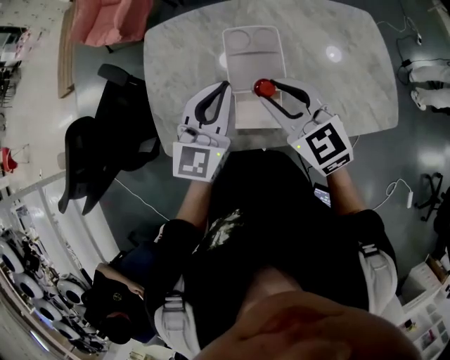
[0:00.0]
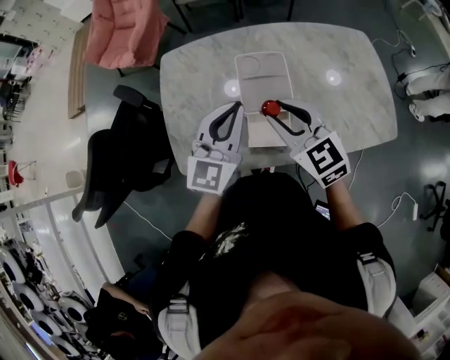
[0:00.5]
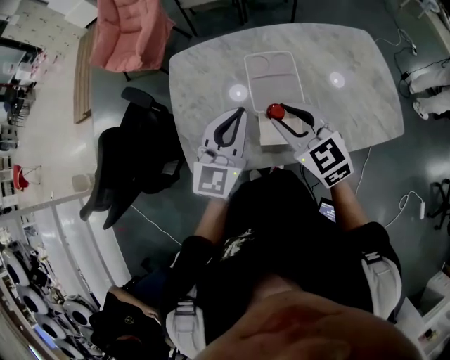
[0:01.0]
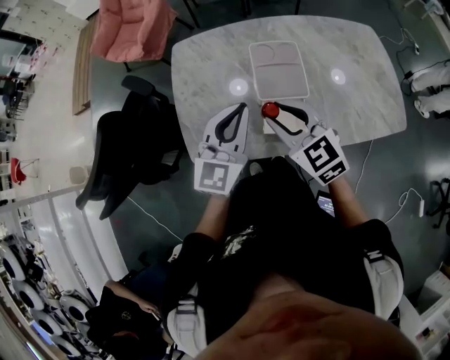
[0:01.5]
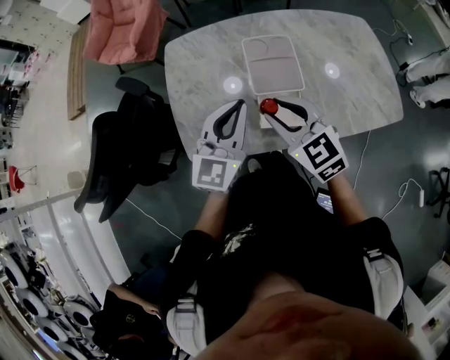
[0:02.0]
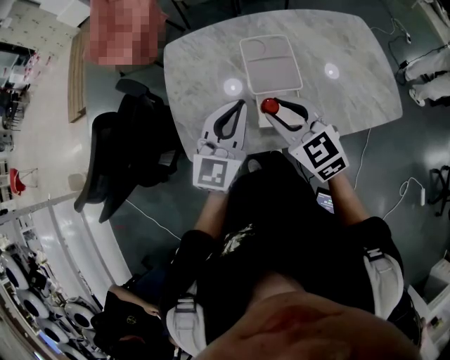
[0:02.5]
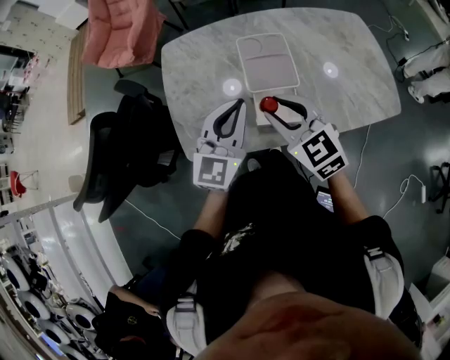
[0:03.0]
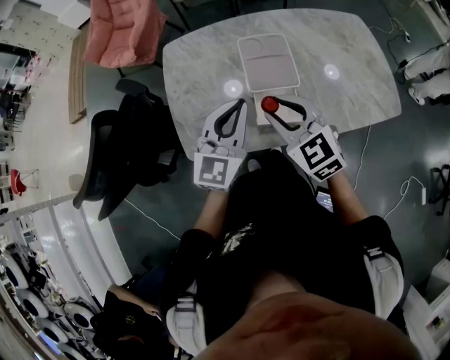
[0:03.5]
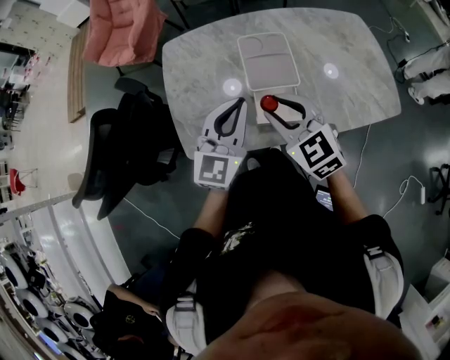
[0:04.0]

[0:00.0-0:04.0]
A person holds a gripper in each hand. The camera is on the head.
0.0 to 2.0 s: Both grippers travel together to the left and backward, some 10 cm.
2.0 to 4.0 s: The grippers move only a little.

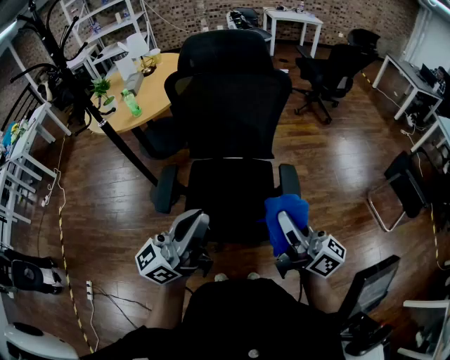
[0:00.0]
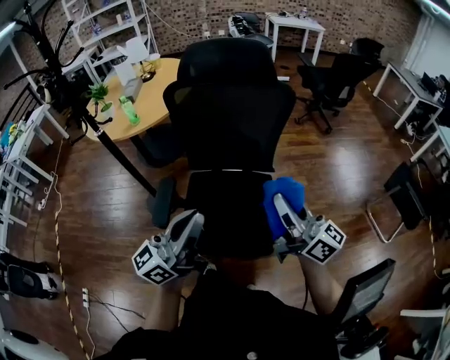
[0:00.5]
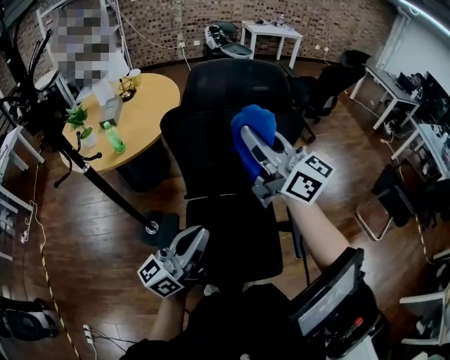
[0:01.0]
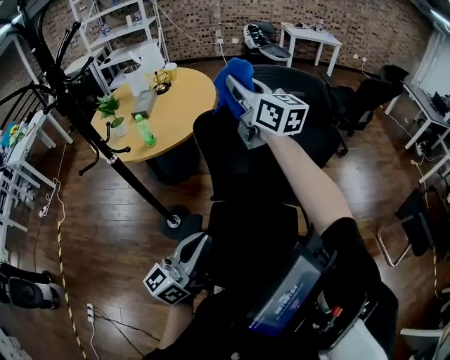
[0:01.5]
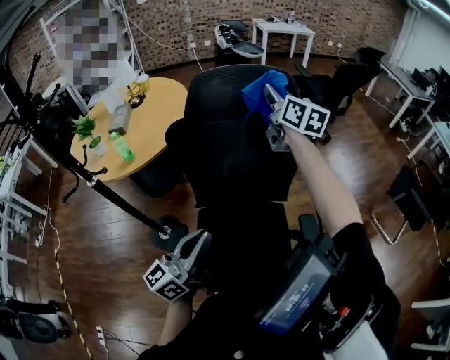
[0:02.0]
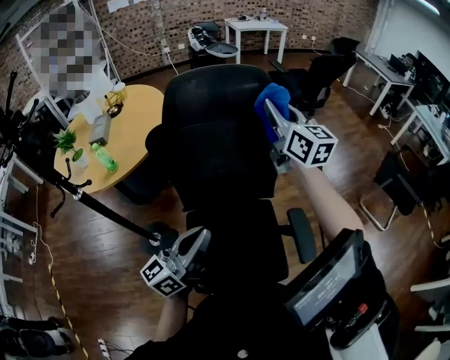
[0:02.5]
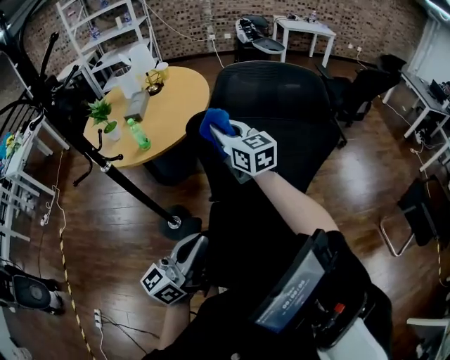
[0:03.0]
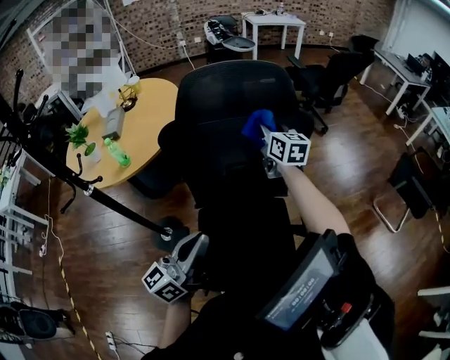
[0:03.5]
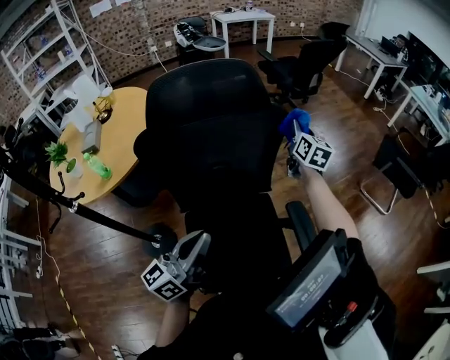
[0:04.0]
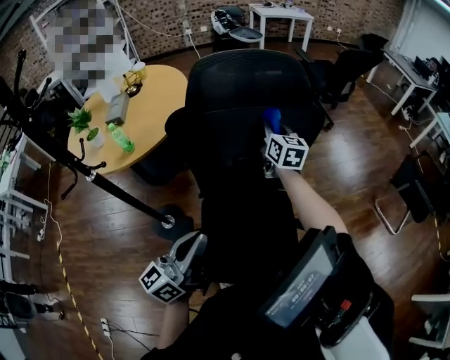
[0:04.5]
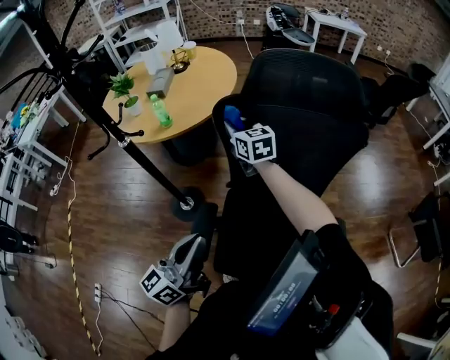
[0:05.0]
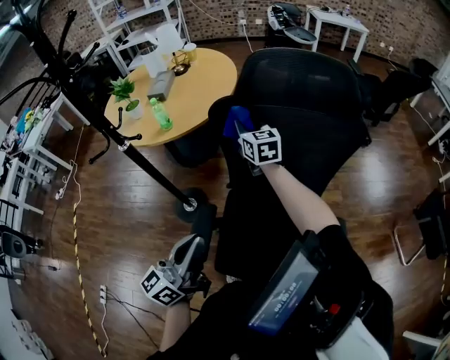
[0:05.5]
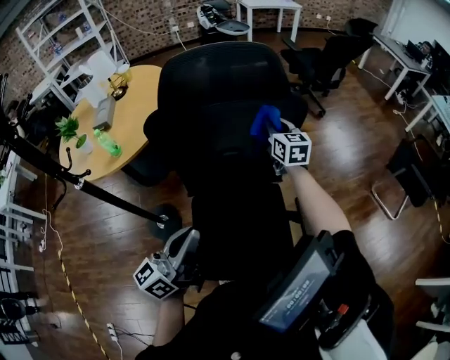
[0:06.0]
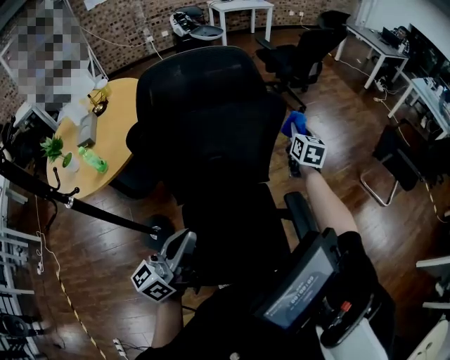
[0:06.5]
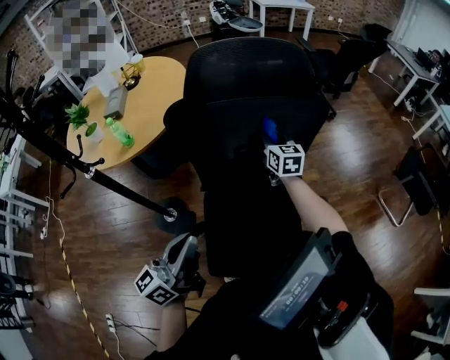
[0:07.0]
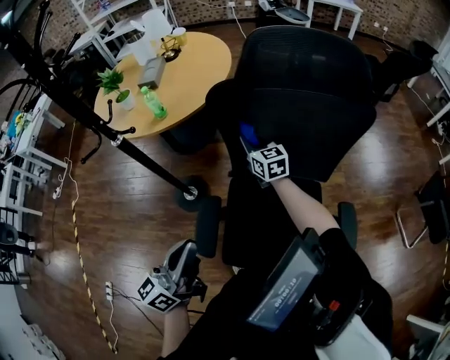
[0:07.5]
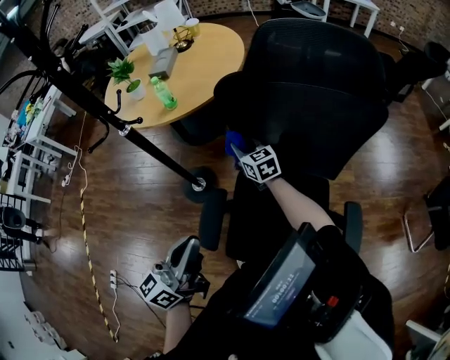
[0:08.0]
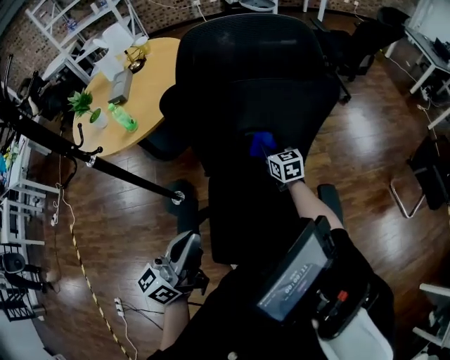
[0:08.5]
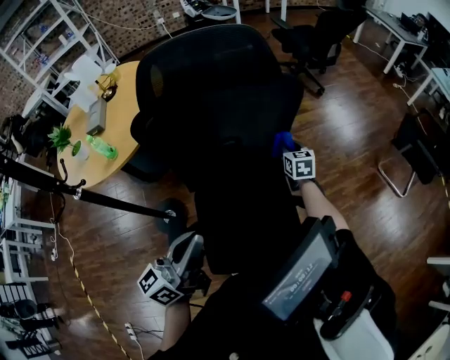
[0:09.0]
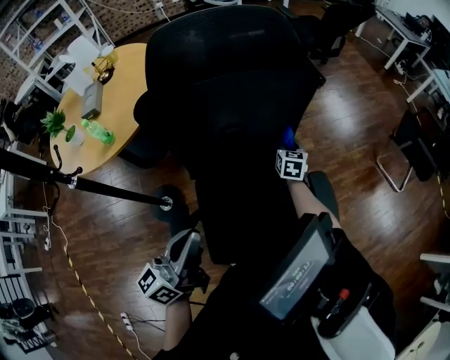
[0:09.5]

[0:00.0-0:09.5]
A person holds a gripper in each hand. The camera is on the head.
0.0 to 2.0 s: The right gripper shifts roughly 60 cm forward, and rotates approximately 40 degrees. The left gripper goes approximately 25 cm forward and to the left.
2.0 to 4.0 s: The right gripper changes place by approximately 30 cm, and changes its angle by about 30 degrees.
4.0 to 5.5 s: The left gripper moves approximately 15 cm, and turns by about 30 degrees; the right gripper changes place by roughly 50 cm, and changes its angle by some 50 degrees.
5.5 to 7.5 s: The right gripper goes some 10 cm downward.
7.5 to 9.5 s: The left gripper changes place by roughly 10 cm, while the right gripper shifts by about 35 cm, and swivels about 50 degrees.

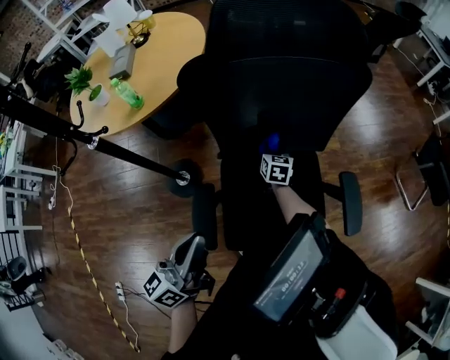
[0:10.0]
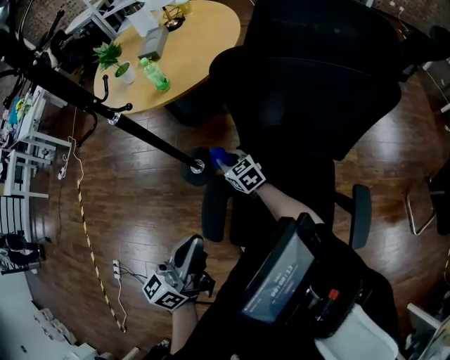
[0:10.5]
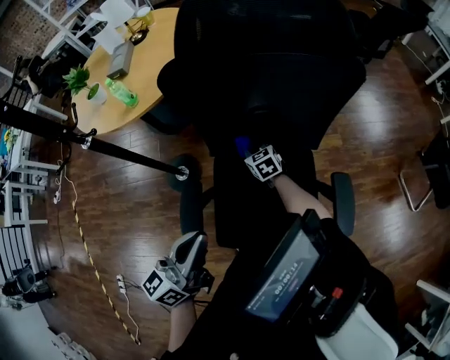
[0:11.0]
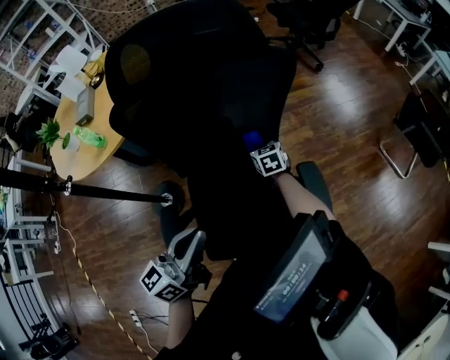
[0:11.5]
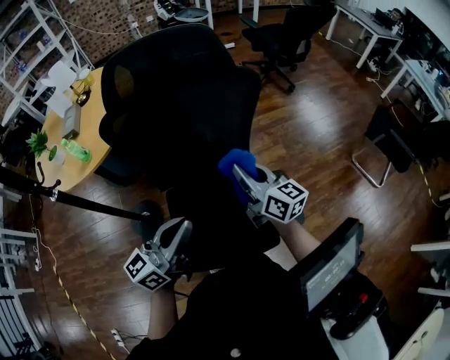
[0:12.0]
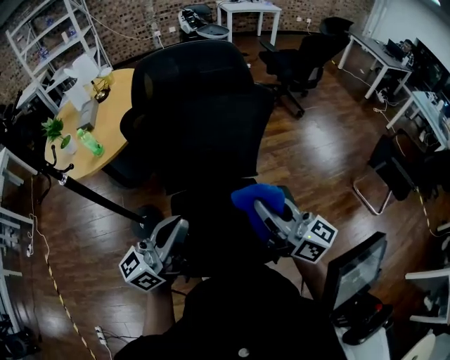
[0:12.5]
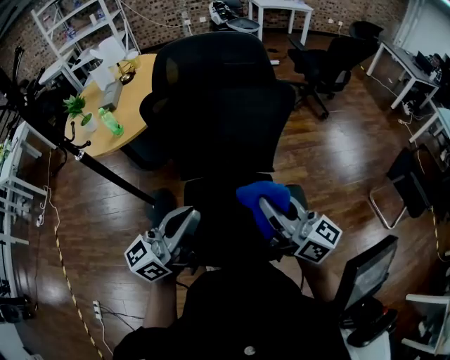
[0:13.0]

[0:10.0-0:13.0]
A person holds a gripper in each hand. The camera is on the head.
10.0 to 11.5 s: The left gripper ends up roughly 15 cm from where it was.
11.5 to 13.0 s: The left gripper heads upward, covering about 10 cm; the right gripper moves upward and backward, roughly 40 cm, and tilts its fingers some 50 degrees upward.

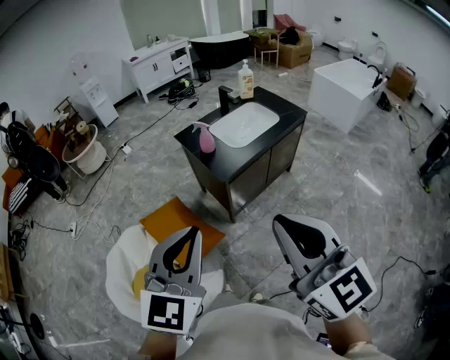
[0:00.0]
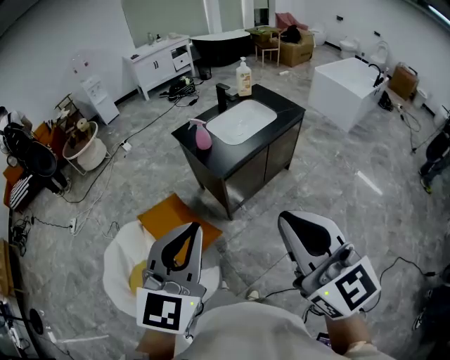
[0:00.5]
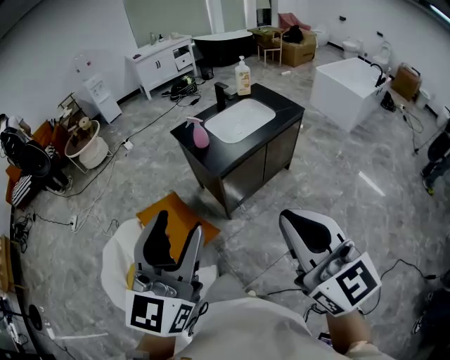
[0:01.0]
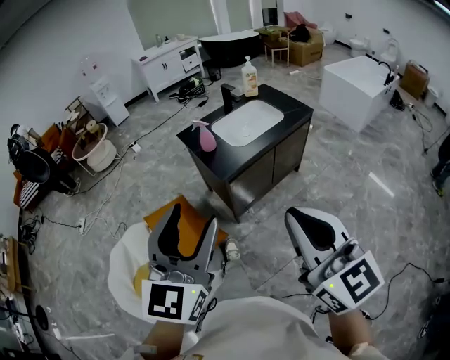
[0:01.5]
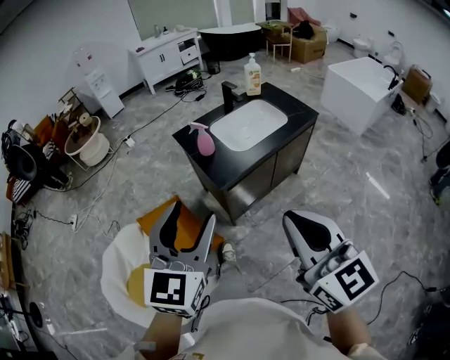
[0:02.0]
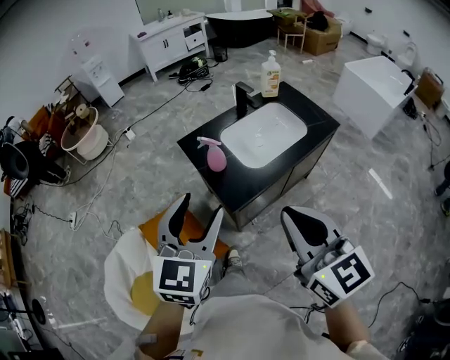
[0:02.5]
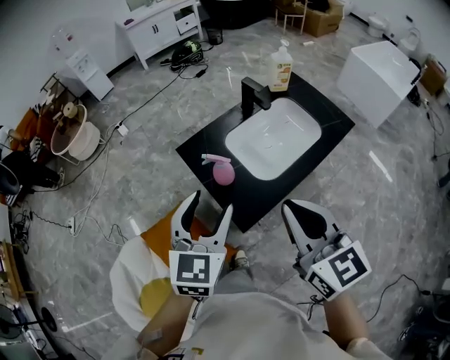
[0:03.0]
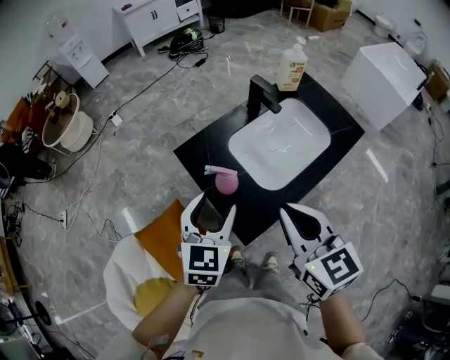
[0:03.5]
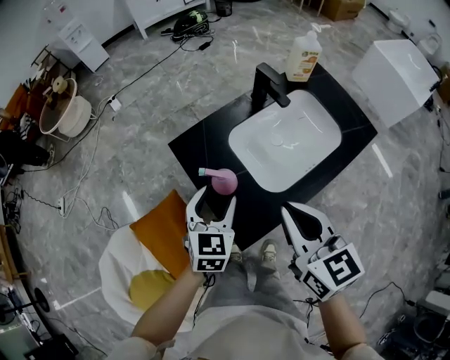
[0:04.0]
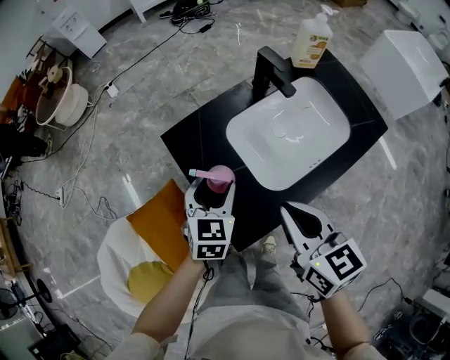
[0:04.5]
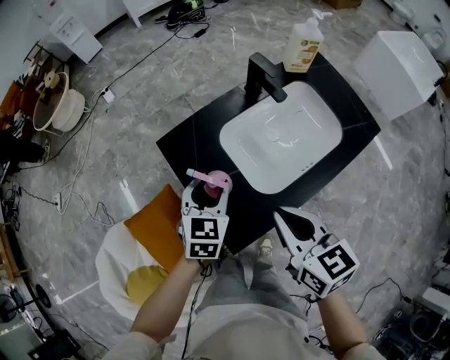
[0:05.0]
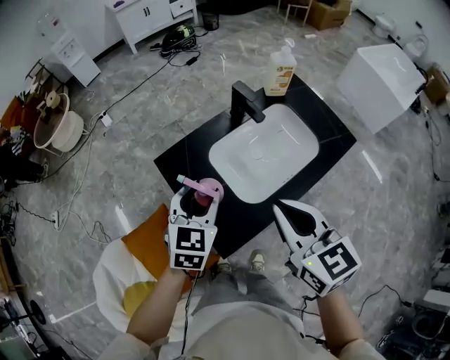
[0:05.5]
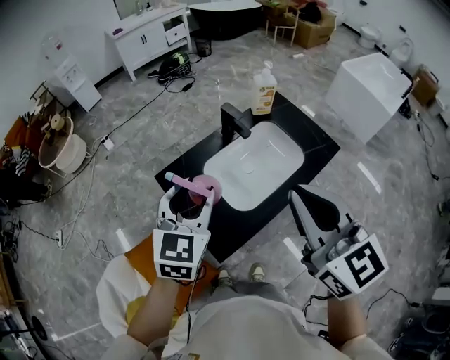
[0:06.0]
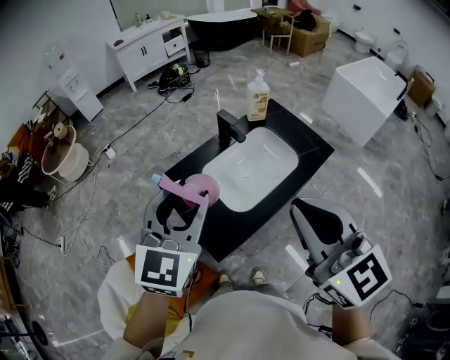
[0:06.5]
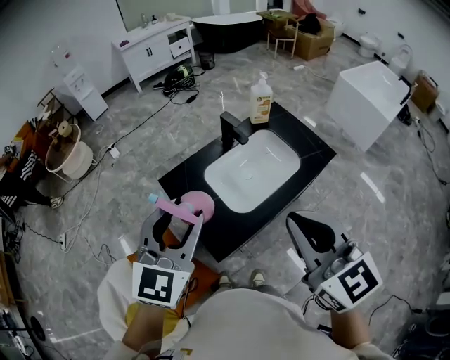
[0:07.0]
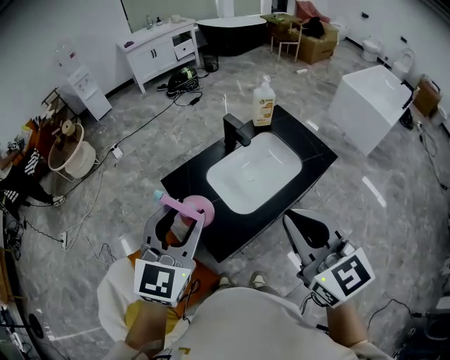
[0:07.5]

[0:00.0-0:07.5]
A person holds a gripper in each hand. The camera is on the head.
0.0 to 2.0 s: The right gripper shifts approximately 15 cm forward, to the right and downward. Meanwhile the left gripper shifts roughly 15 cm forward and to the right, and opens up.
2.0 to 4.0 s: The two grippers travel together, forward, approximately 50 cm. The left gripper heads downward, covering approximately 30 cm, and changes its angle by some 30 degrees. Meanwhile the right gripper swivels roughly 20 degrees.
4.0 to 5.5 s: The left gripper travels upward by roughly 10 cm, while the right gripper moves about 5 cm.
5.5 to 7.5 s: Both grippers move upward and backward, some 20 cm. The left gripper turns by approximately 20 degrees.

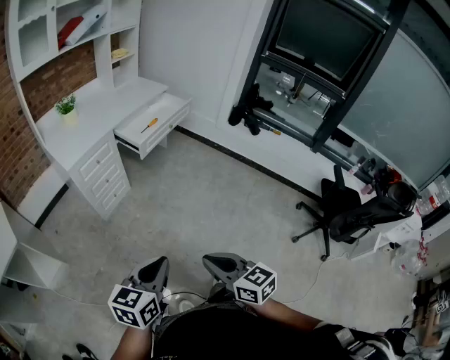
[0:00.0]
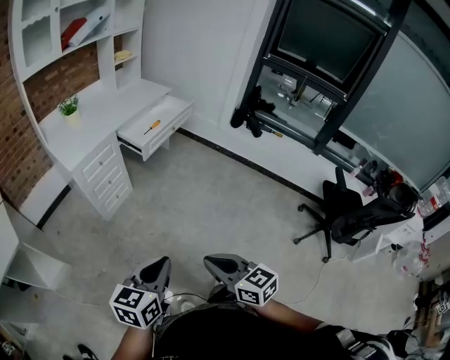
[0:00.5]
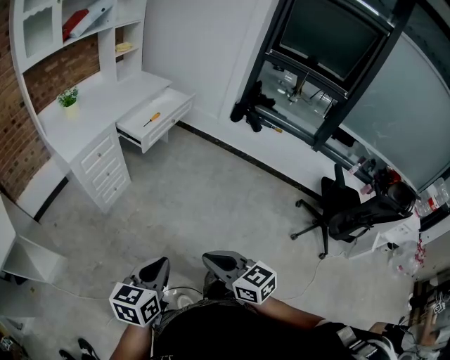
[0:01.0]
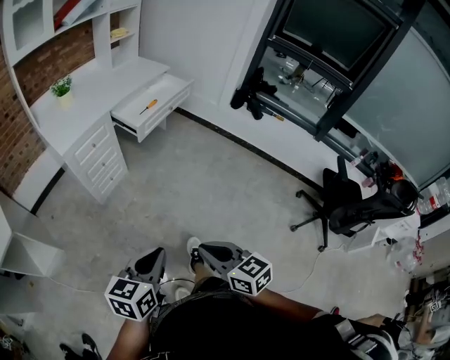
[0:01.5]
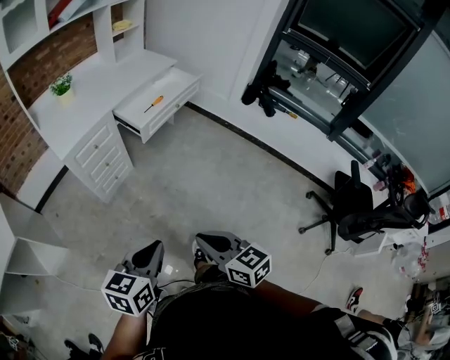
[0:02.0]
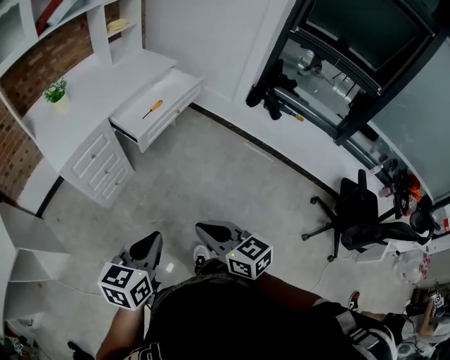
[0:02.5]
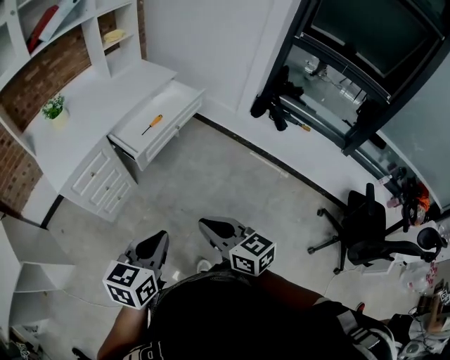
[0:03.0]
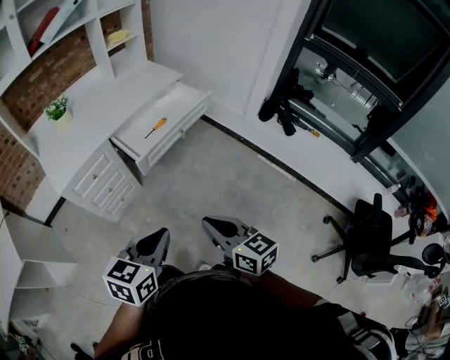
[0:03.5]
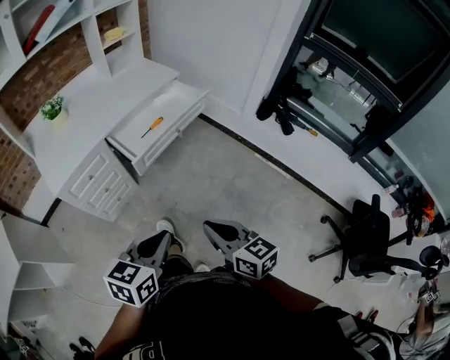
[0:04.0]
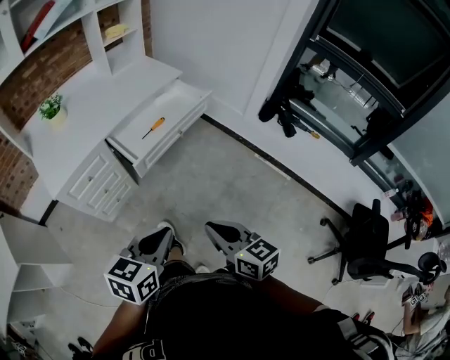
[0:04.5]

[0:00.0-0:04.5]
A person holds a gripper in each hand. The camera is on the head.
0.0 to 2.0 s: Both grippers travel together forward, some 10 cm.
2.0 to 4.5 s: The grippers both shift forward and to the right by approximately 30 cm.
